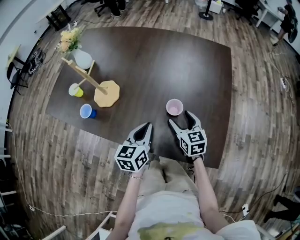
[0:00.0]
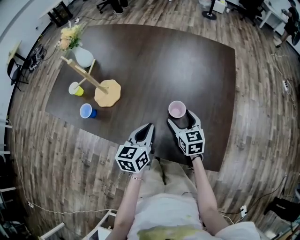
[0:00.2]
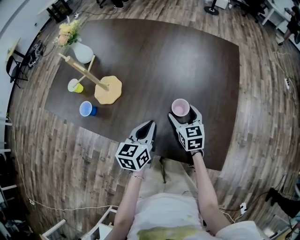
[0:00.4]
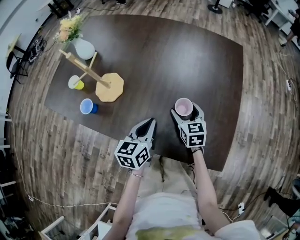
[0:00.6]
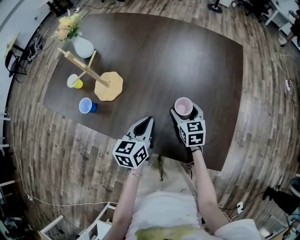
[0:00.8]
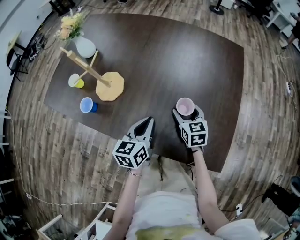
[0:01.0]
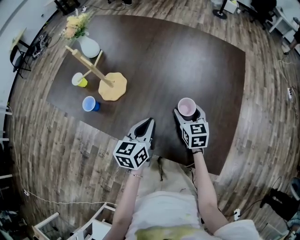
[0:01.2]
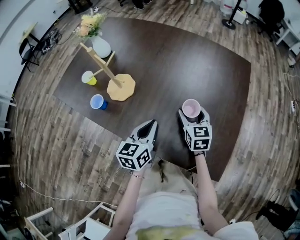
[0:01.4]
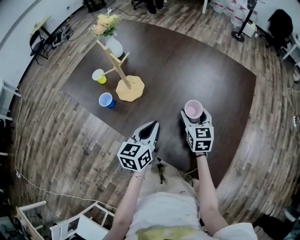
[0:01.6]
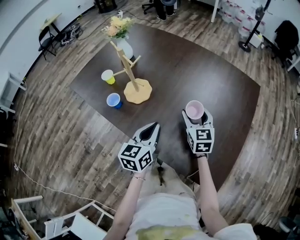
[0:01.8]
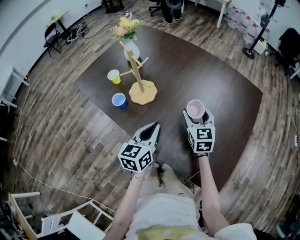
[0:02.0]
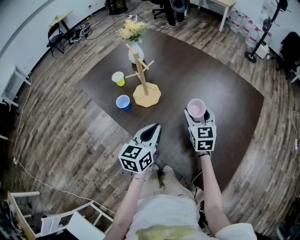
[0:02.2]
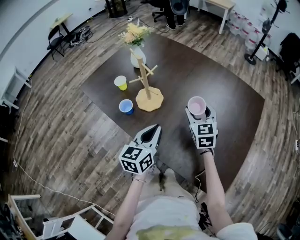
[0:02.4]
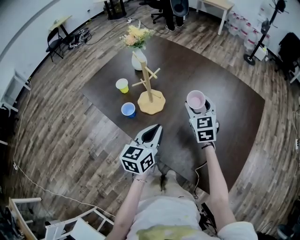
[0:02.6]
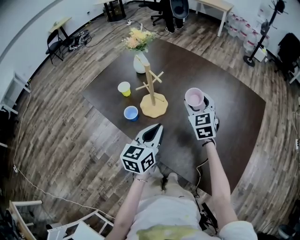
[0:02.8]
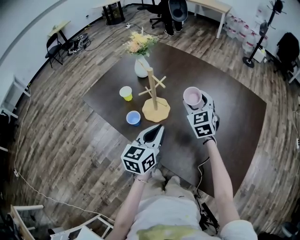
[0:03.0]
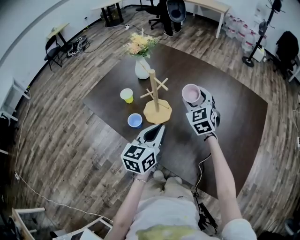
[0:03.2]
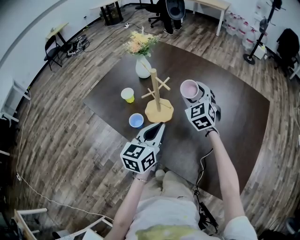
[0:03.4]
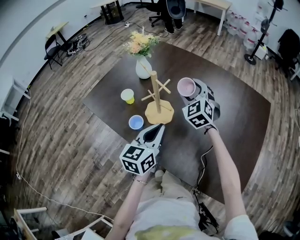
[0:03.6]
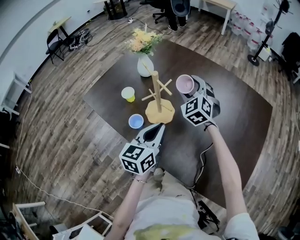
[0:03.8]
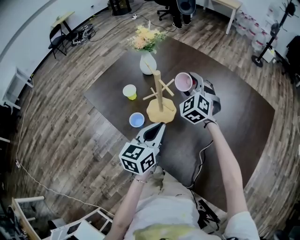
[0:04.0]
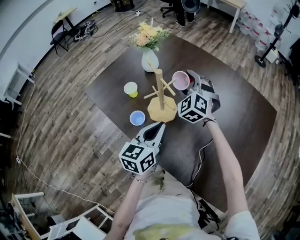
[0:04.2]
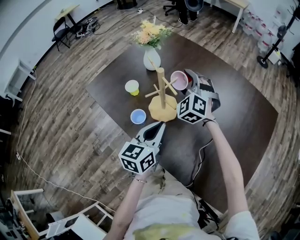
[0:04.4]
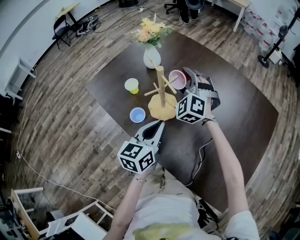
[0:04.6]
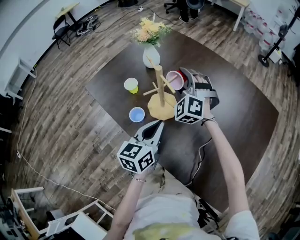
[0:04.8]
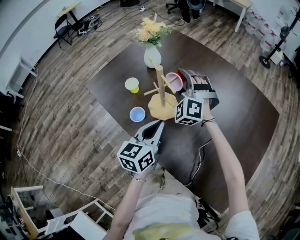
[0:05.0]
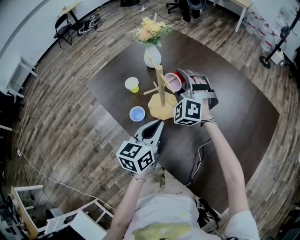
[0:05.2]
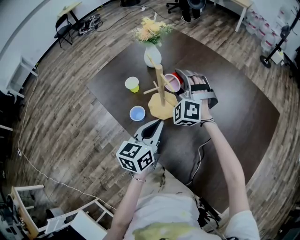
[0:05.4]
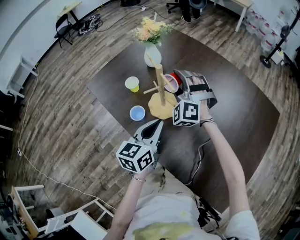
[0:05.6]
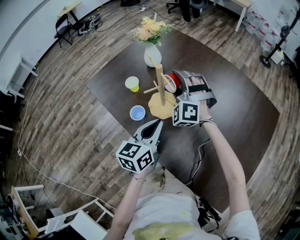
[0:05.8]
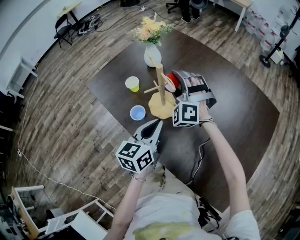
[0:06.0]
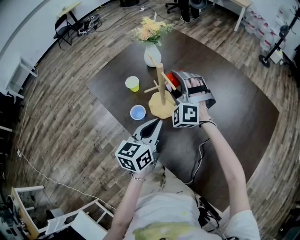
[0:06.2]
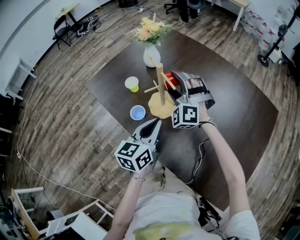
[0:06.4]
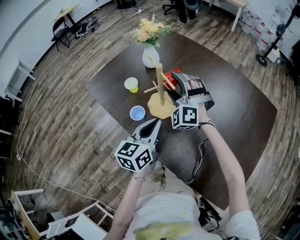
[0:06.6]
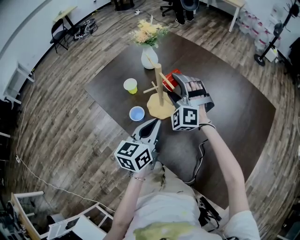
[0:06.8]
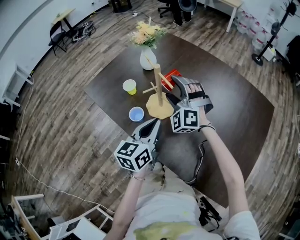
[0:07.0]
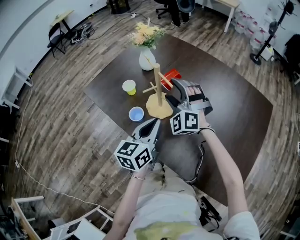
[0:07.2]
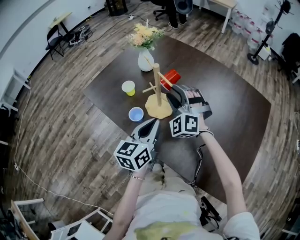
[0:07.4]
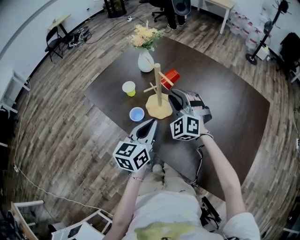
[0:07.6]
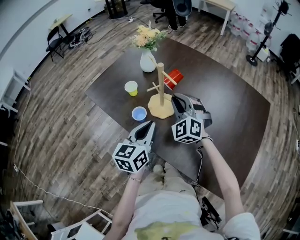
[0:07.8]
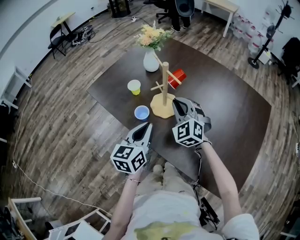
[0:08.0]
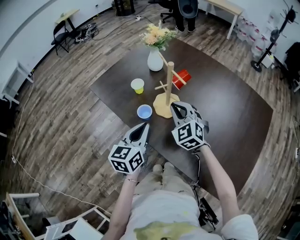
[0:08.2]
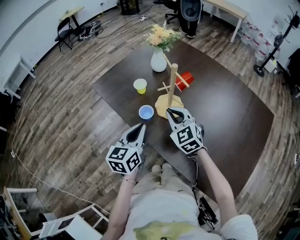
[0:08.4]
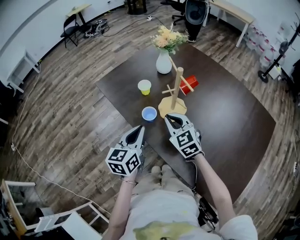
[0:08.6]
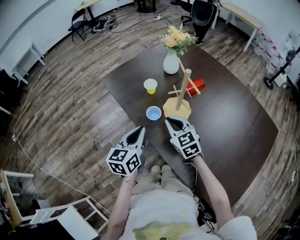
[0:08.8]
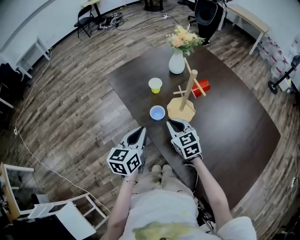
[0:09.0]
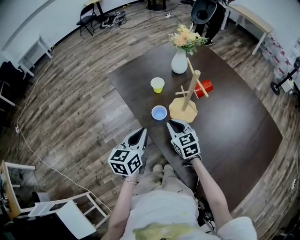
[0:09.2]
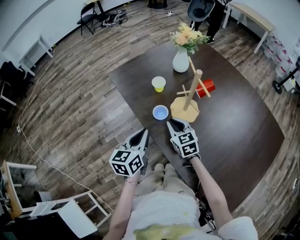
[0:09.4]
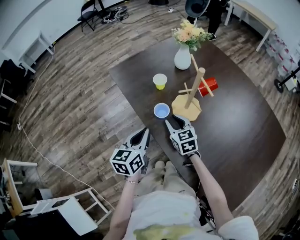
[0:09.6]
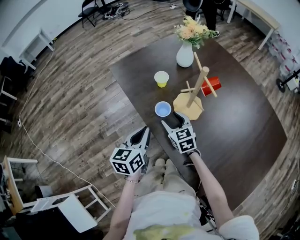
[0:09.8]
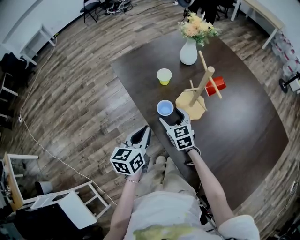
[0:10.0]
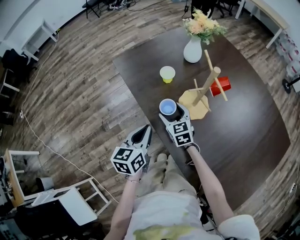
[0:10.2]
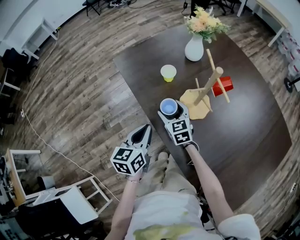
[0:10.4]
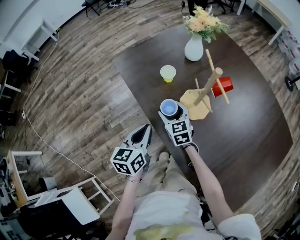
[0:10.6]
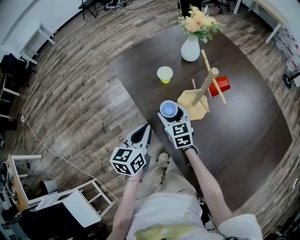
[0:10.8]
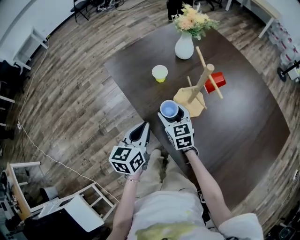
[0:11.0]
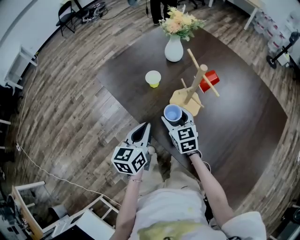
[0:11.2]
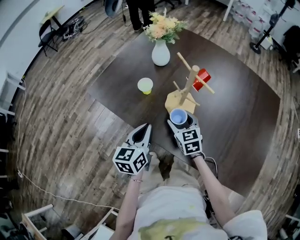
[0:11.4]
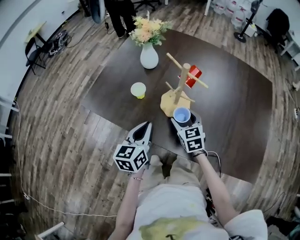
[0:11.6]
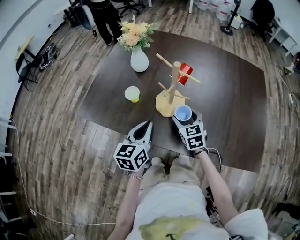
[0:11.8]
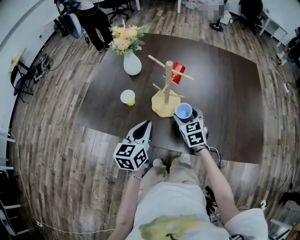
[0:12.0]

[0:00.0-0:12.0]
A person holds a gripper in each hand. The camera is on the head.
0:00.0 to 0:01.6: The left gripper shifts by about 5 cm. Meanwhile the right gripper goes some 5 cm forward.
0:01.6 to 0:03.0: The left gripper heads to the left and upward, covering some 15 cm. The right gripper is displaced to the left, forward and upward by some 20 cm, and rotates approximately 30 degrees.
0:03.0 to 0:04.4: The right gripper travels to the left and forward by roughly 15 cm, and swivels some 40 degrees.
0:04.4 to 0:06.0: The right gripper moves some 5 cm, and rotates about 20 degrees.
0:06.0 to 0:07.6: The right gripper goes roughly 5 cm backward, and closes its fingers.
0:07.6 to 0:09.0: The right gripper moves to the left, downward and backward, about 15 cm, and twists approximately 50 degrees clockwise, seen from behind. The left gripper heads to the left, covering some 10 cm, and changes its angle by some 20 degrees.
0:09.0 to 0:10.4: The right gripper heads downward, forward and to the left, covering about 10 cm, and opens; the left gripper ends up roughly 5 cm from where it was.
0:10.4 to 0:12.0: The right gripper changes place by roughly 20 cm, and turns by approximately 50 degrees. The left gripper ends up some 10 cm from where it was, and swivels approximately 40 degrees.

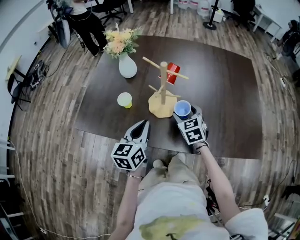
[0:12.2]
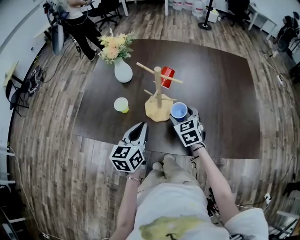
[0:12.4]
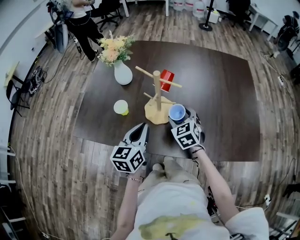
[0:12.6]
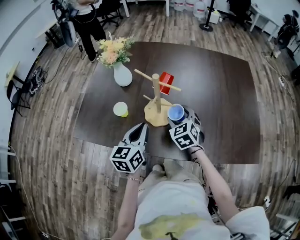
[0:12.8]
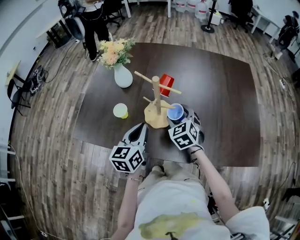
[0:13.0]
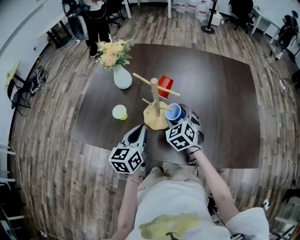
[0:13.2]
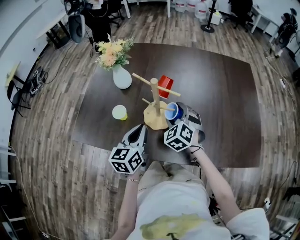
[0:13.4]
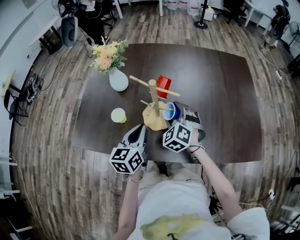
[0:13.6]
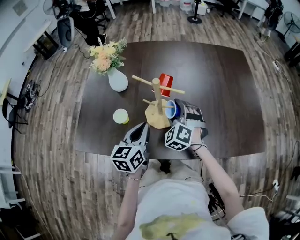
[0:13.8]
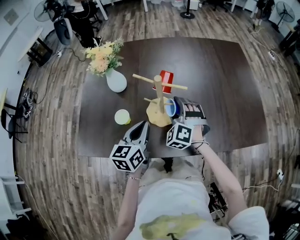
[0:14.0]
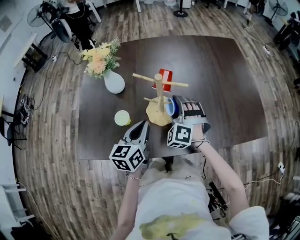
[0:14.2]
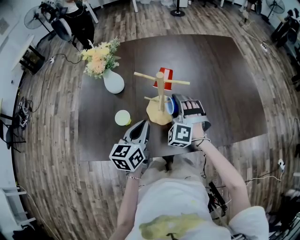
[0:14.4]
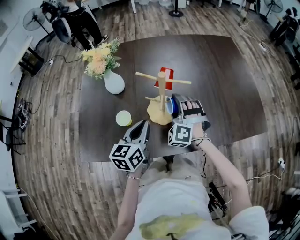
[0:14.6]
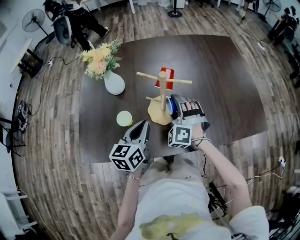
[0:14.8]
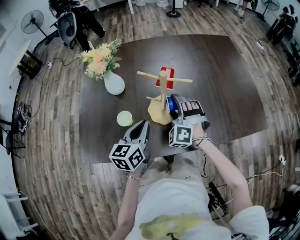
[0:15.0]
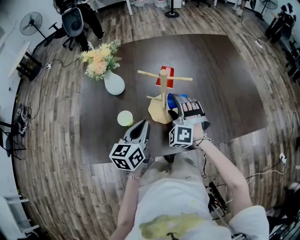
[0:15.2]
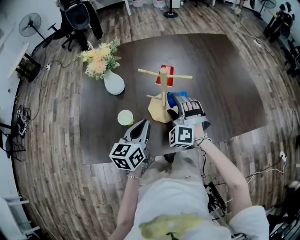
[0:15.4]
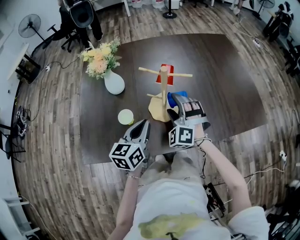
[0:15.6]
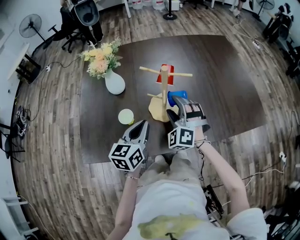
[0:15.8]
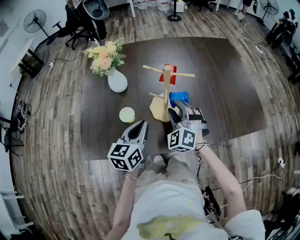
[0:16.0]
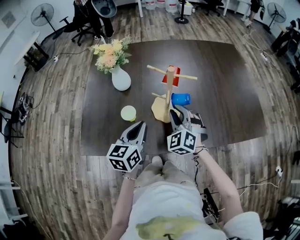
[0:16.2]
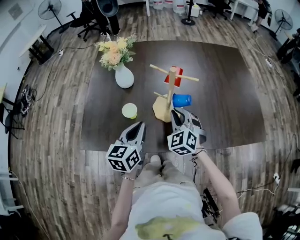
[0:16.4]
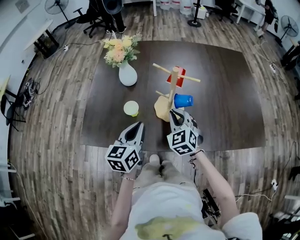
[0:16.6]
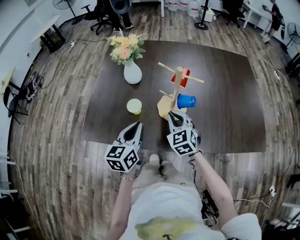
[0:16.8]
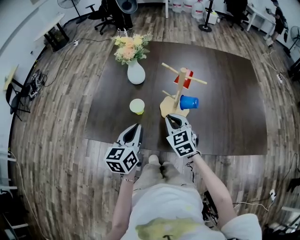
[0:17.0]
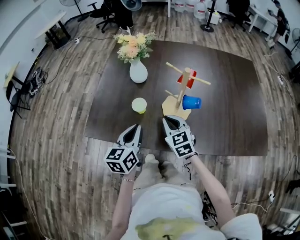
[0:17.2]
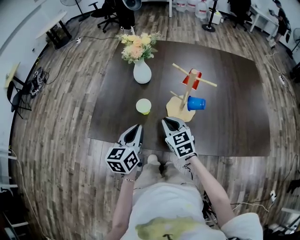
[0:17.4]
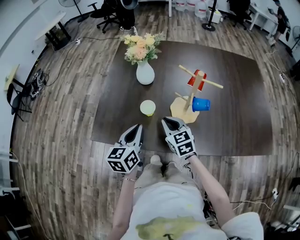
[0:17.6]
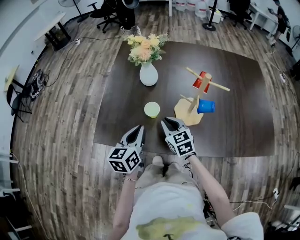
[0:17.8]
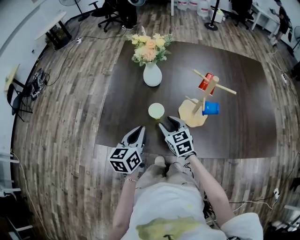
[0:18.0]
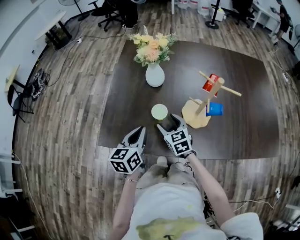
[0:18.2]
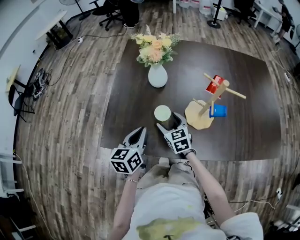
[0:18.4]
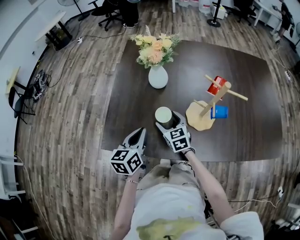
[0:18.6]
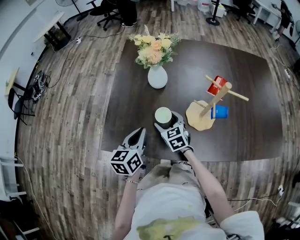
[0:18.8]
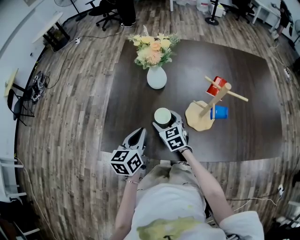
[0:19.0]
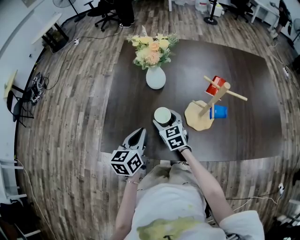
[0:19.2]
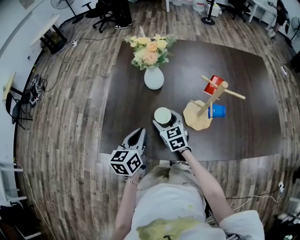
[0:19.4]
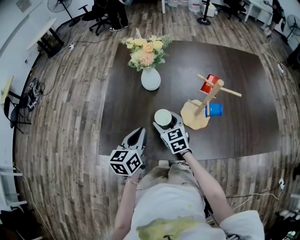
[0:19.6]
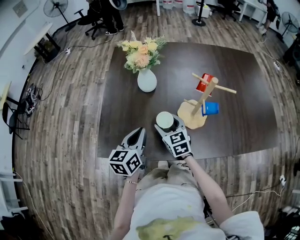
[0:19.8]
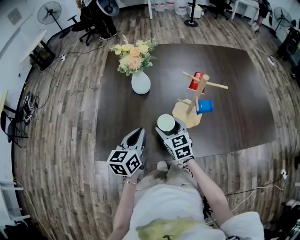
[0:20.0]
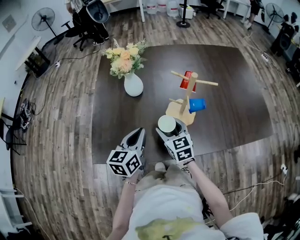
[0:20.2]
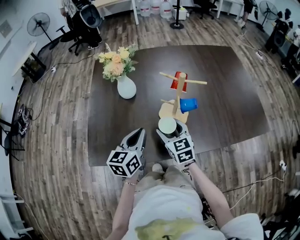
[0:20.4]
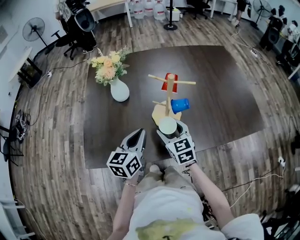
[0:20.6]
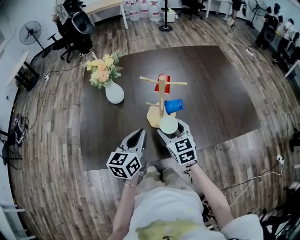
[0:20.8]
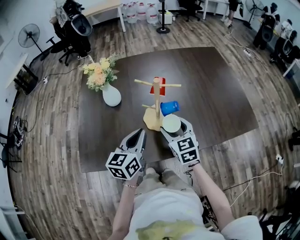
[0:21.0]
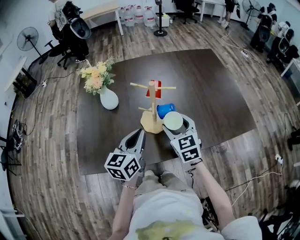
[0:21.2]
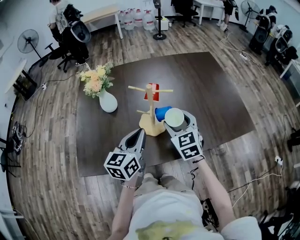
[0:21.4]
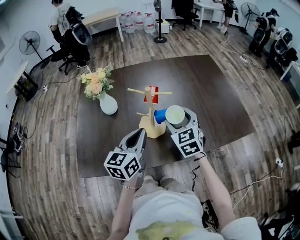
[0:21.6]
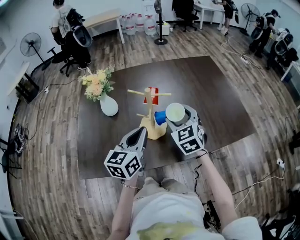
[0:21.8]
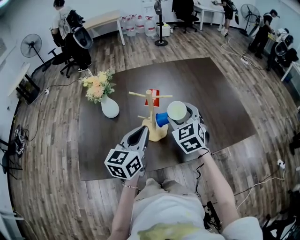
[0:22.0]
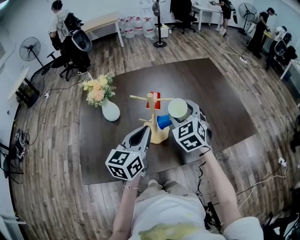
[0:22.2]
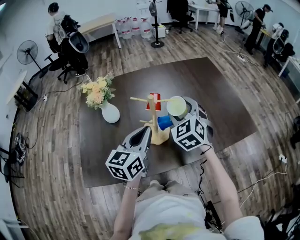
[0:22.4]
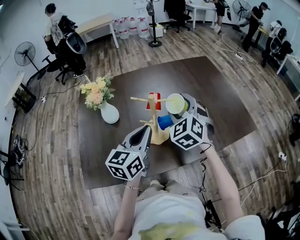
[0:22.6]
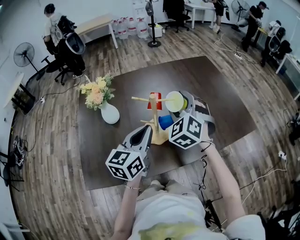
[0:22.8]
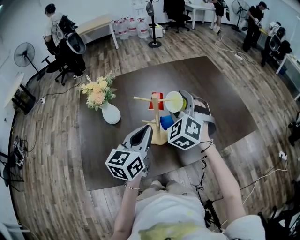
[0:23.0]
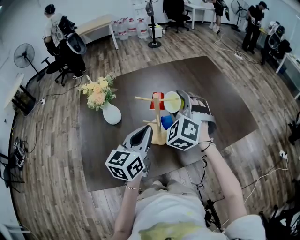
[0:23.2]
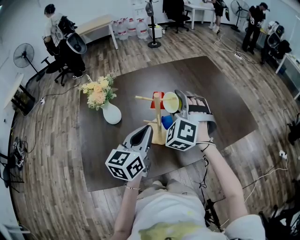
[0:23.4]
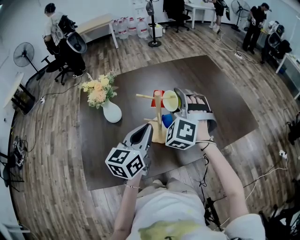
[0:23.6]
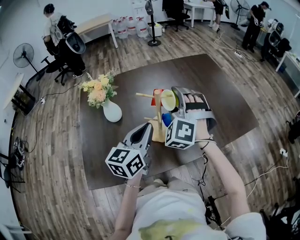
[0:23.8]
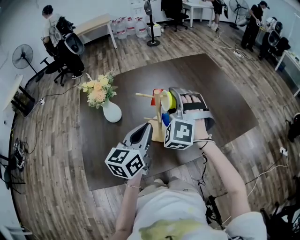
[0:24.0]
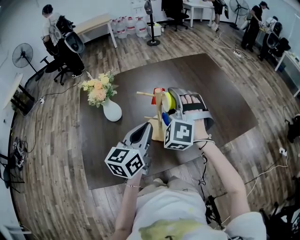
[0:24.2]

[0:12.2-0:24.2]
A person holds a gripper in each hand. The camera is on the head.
0:12.2 to 0:13.8: The left gripper shifts roughly 5 cm forward; the right gripper moves about 5 cm, and turns by approximately 40 degrees.
0:13.8 to 0:15.2: There are only small adjustments of the grippers.
0:15.2 to 0:16.6: The left gripper heads backward, covering about 5 cm. Meanwhile the right gripper moves some 5 cm, turns by approximately 40 degrees, and closes up.
0:16.6 to 0:18.2: The right gripper travels to the left and downward by approximately 20 cm, rotates about 30 degrees, and opens up, while the left gripper travels to the left by approximately 10 cm.
0:18.2 to 0:19.8: The grippers stay close to where they were, moving slightly.
0:19.8 to 0:21.2: Both grippers travel together to the right and upward, about 20 cm.
0:21.2 to 0:22.6: The right gripper heads upward and forward, covering approximately 10 cm, and turns by roughly 30 degrees; the left gripper travels upward by some 5 cm.
0:22.6 to 0:24.2: The right gripper travels to the left by some 5 cm, and rotates some 30 degrees.
